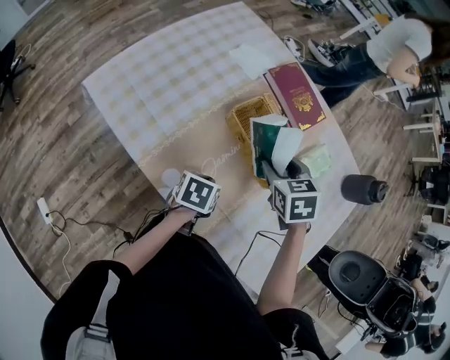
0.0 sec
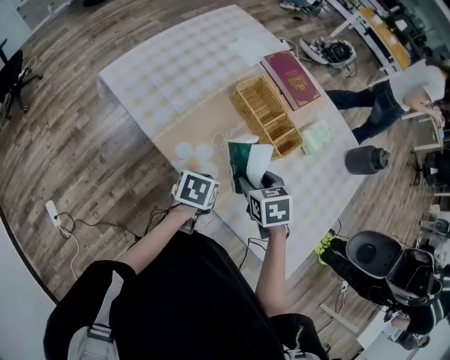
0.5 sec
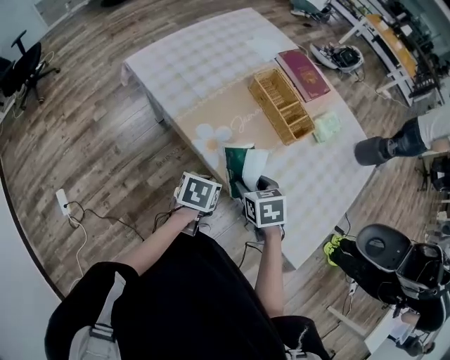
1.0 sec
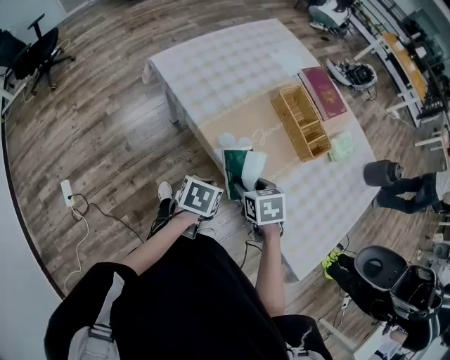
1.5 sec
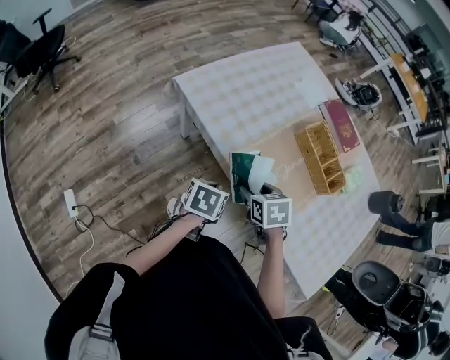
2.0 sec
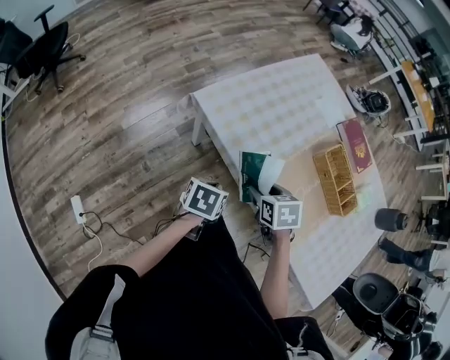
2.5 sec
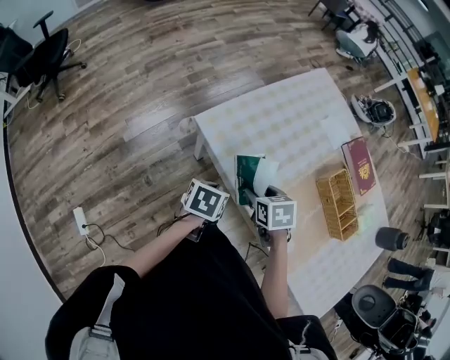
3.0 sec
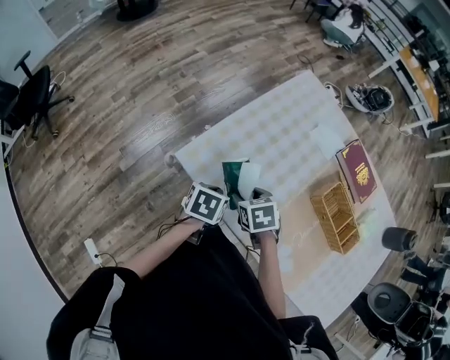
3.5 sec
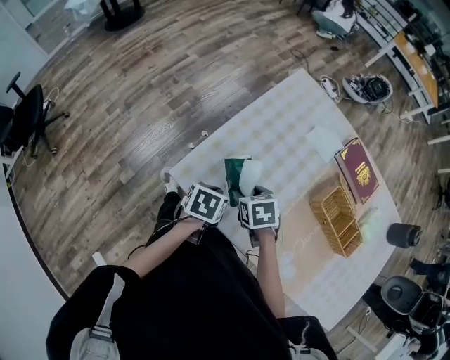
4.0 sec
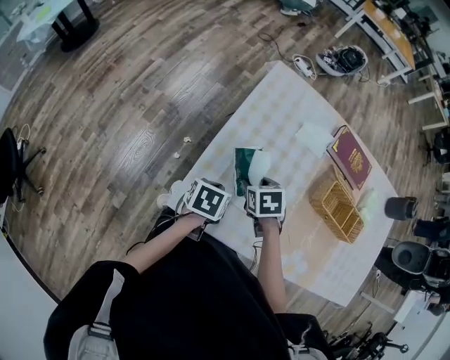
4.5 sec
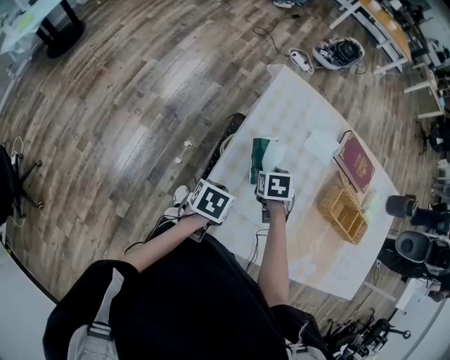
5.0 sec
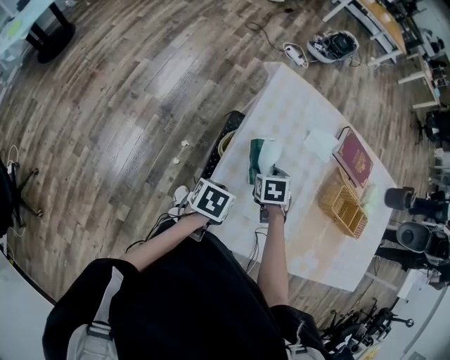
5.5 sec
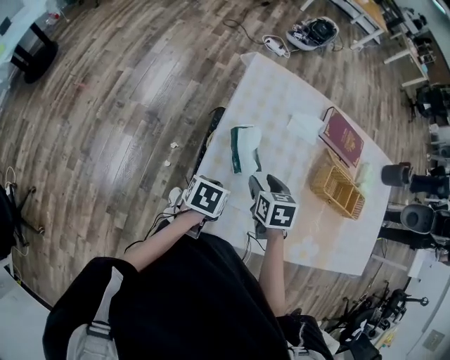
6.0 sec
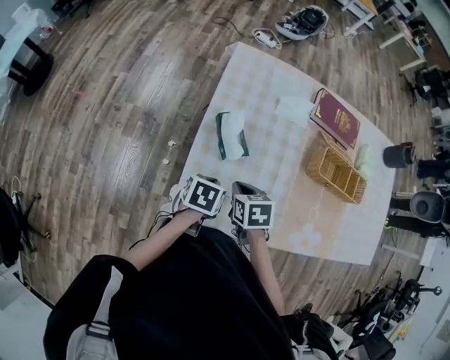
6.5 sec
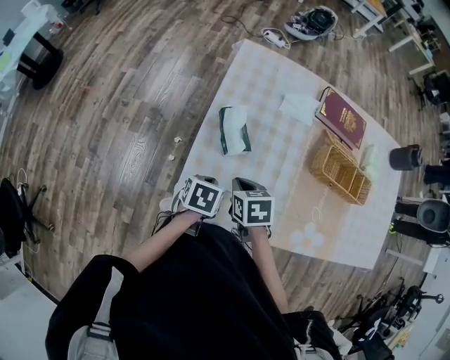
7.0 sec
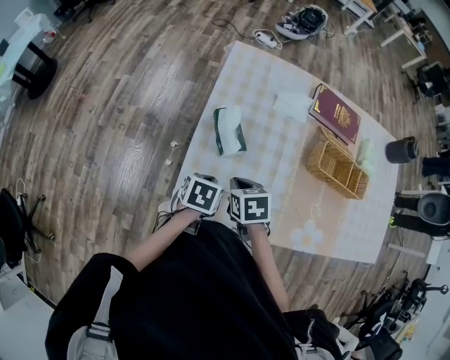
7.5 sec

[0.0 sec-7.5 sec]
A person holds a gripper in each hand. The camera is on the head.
0.0 sec to 2.0 sec: The two grippers go approximately 30 cm to the left and backward.
2.0 sec to 4.0 sec: The grippers both shift forward and to the left by some 35 cm.
4.0 sec to 5.5 sec: The right gripper changes place by approximately 20 cm, and swivels roughly 30 degrees, while the left gripper shifts by approximately 15 cm, and swivels some 20 degrees.
5.5 sec to 7.5 sec: The right gripper is displaced backward by approximately 15 cm, and closes; the left gripper shifts some 10 cm to the right.

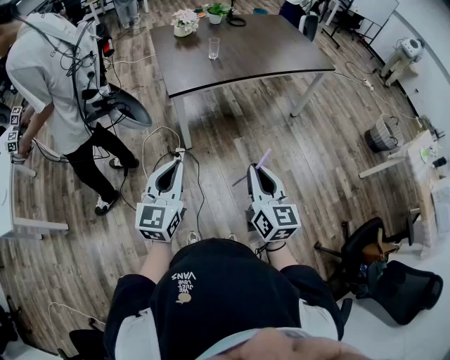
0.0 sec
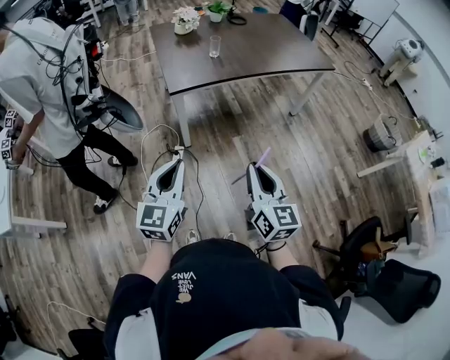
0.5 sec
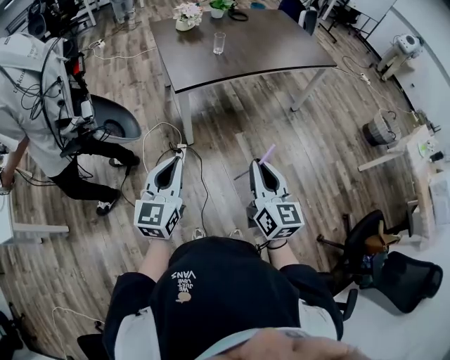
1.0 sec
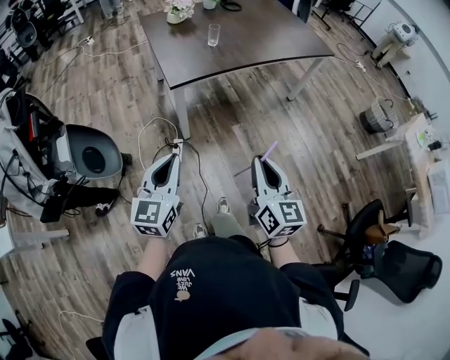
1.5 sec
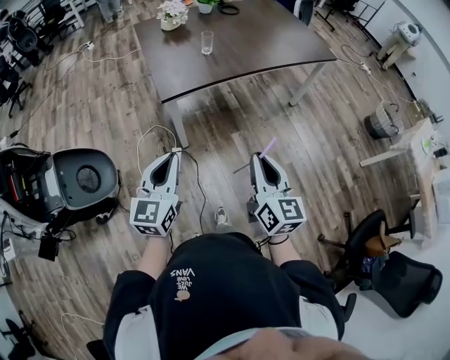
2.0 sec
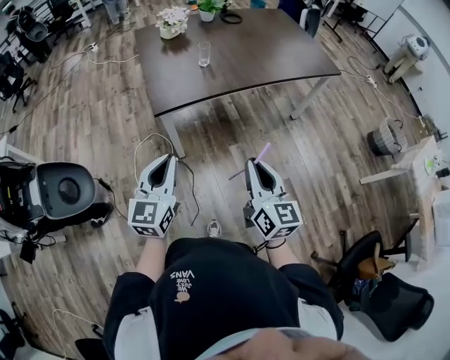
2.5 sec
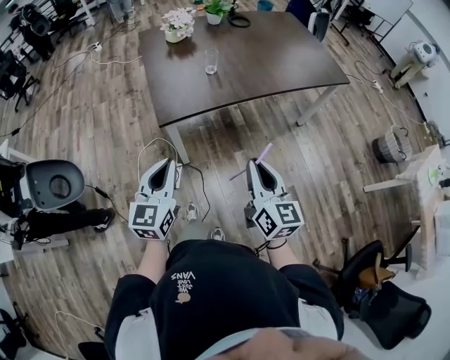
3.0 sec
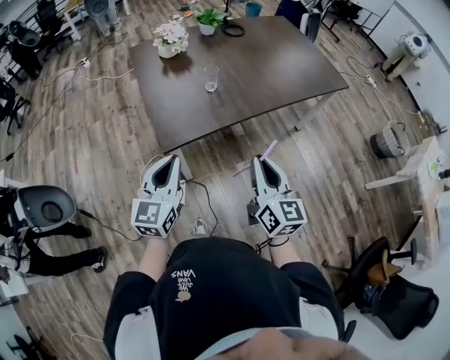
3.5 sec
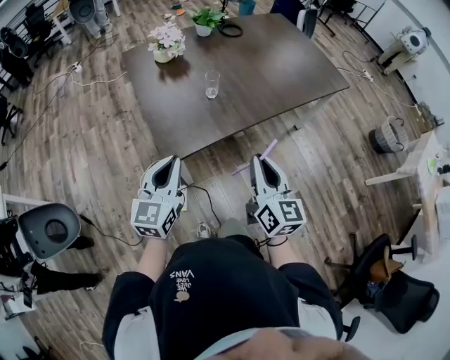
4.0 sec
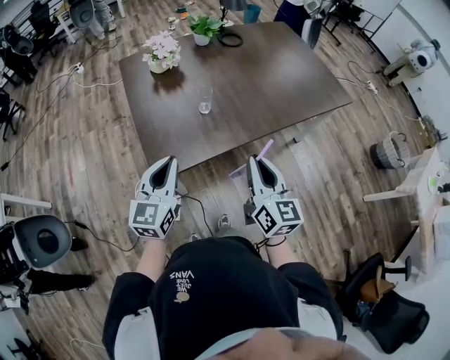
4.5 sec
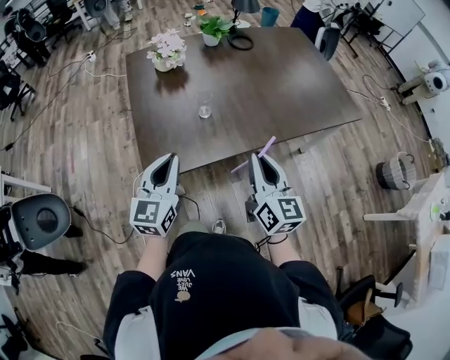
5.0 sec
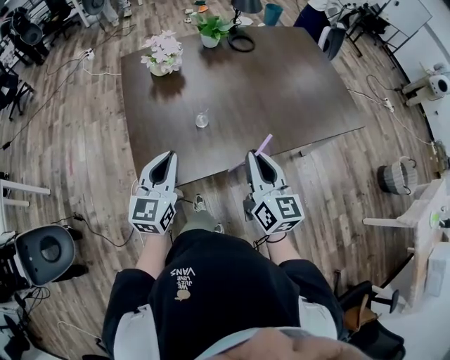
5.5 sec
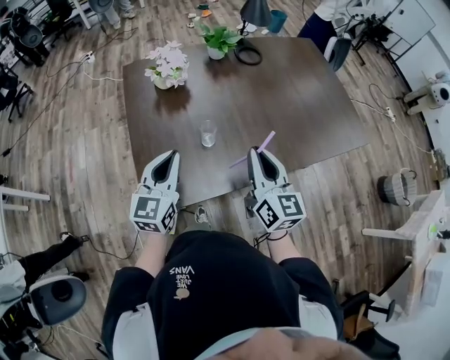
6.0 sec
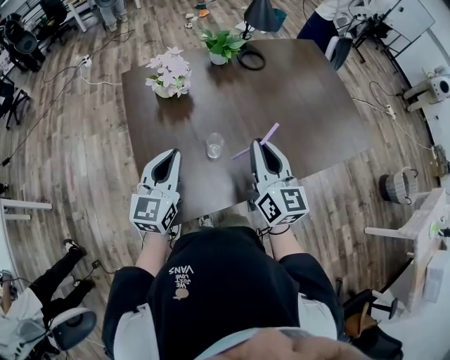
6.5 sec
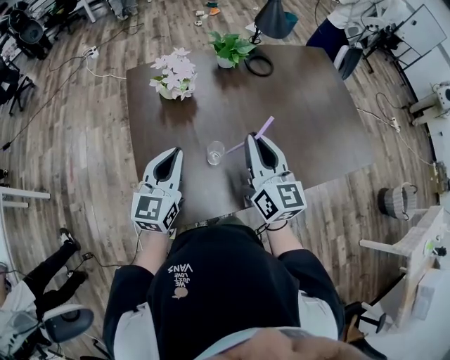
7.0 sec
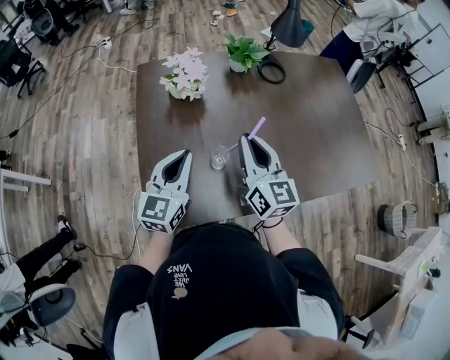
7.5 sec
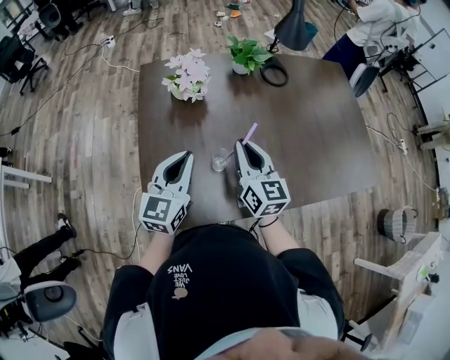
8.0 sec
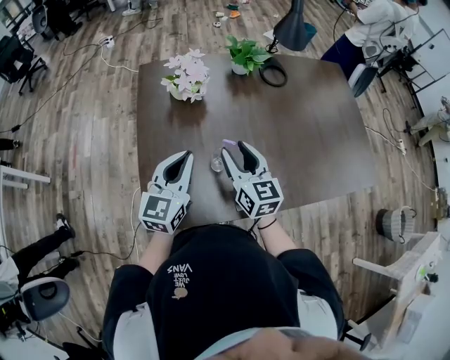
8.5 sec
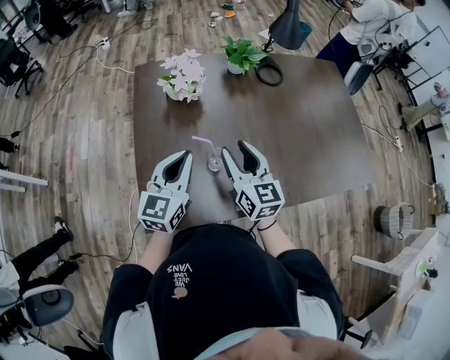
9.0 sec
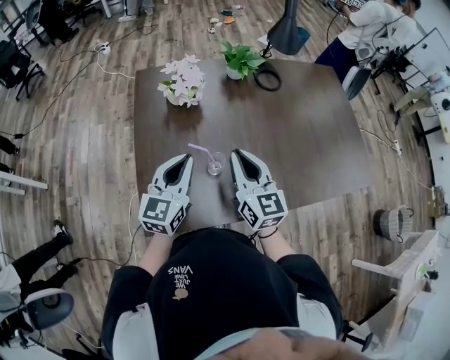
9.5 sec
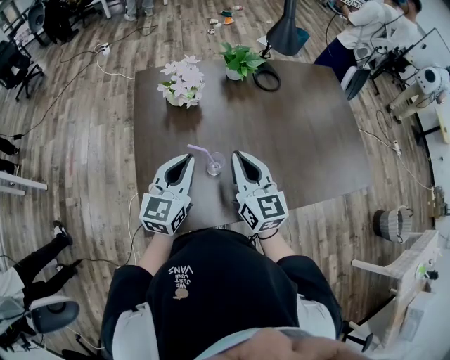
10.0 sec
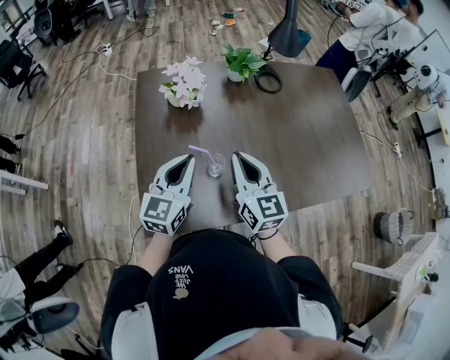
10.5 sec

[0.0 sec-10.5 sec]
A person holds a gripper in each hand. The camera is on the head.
0.0 sec to 2.0 sec: Both grippers move forward, some 10 cm.
2.0 sec to 4.0 sec: Both grippers move forward, roughly 30 cm.
4.0 sec to 6.5 sec: The grippers both shift forward by approximately 35 cm.
6.5 sec to 8.5 sec: The right gripper travels forward, downward and to the left by roughly 15 cm, changes its angle by approximately 20 degrees, and opens up.
8.5 sec to 10.5 sec: The right gripper moves about 5 cm, and closes up.

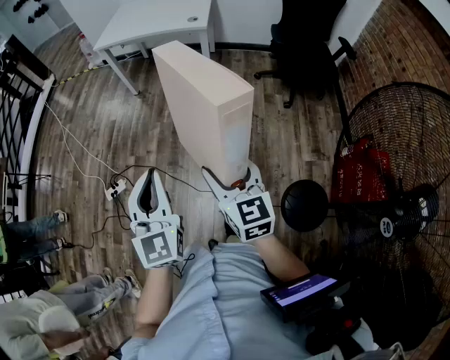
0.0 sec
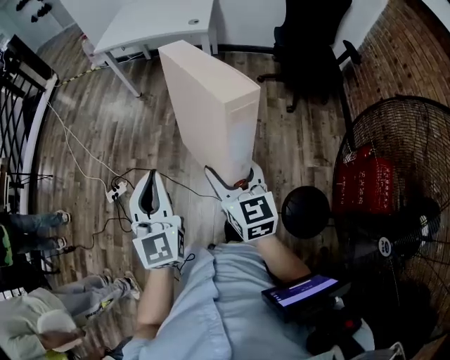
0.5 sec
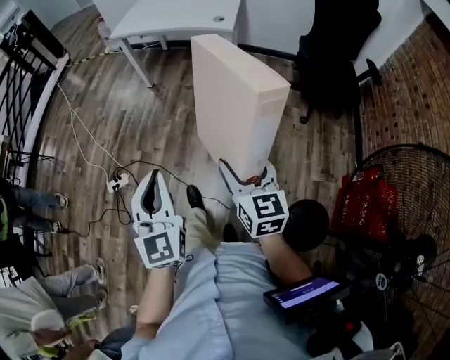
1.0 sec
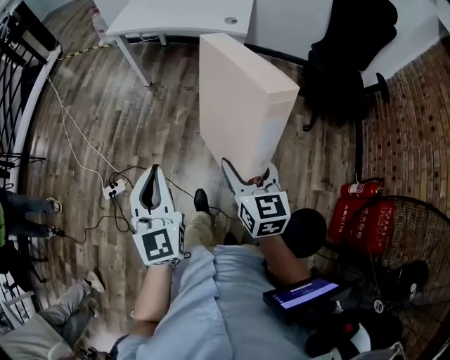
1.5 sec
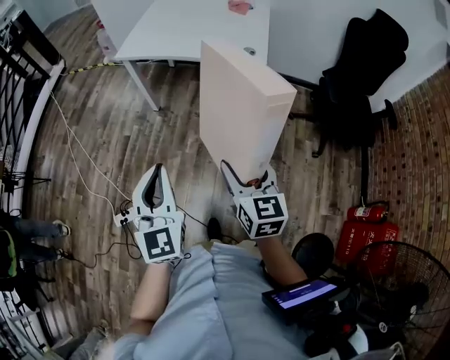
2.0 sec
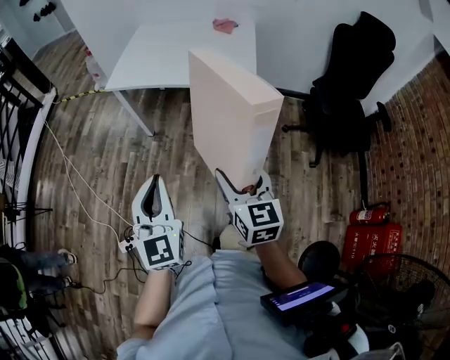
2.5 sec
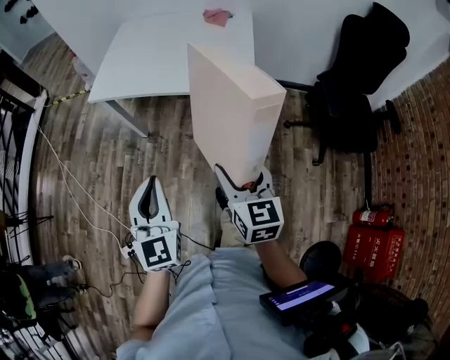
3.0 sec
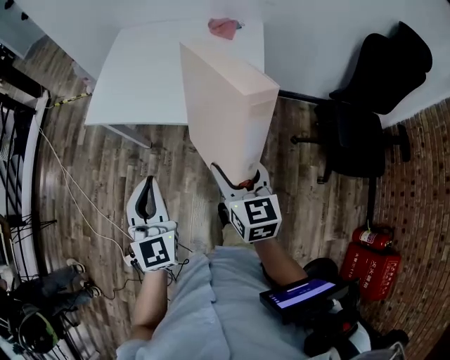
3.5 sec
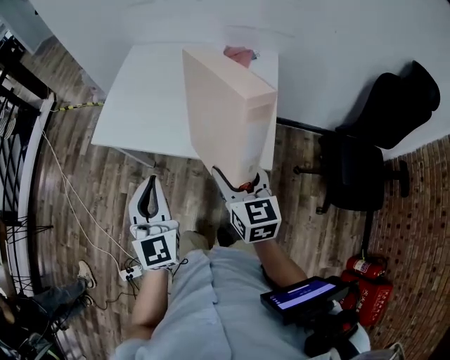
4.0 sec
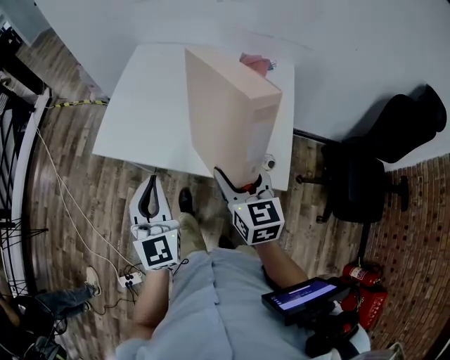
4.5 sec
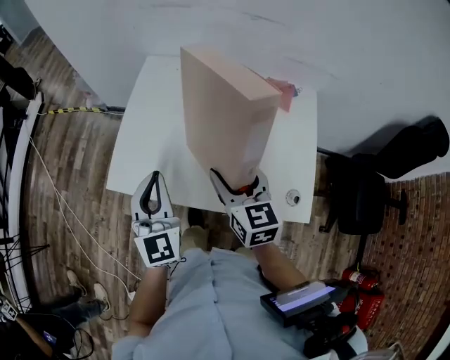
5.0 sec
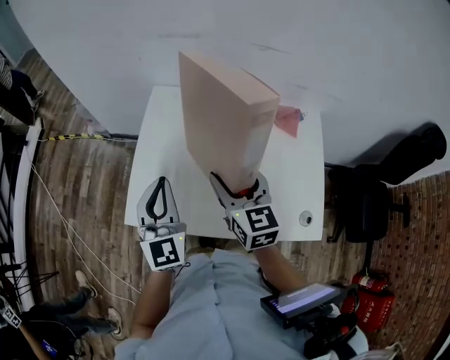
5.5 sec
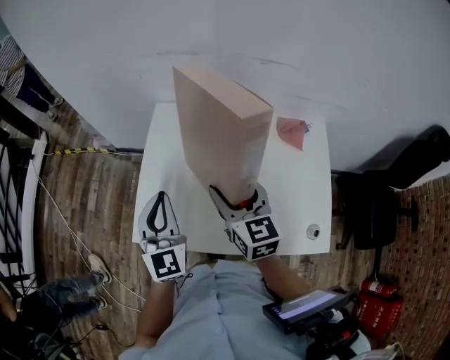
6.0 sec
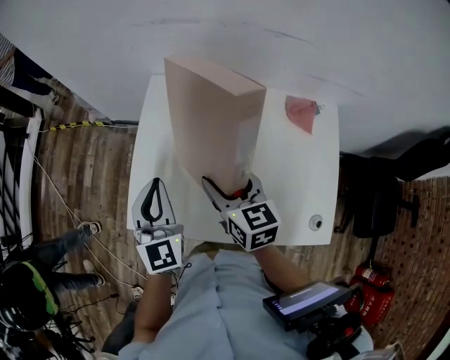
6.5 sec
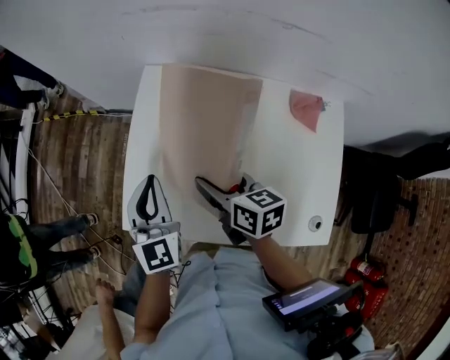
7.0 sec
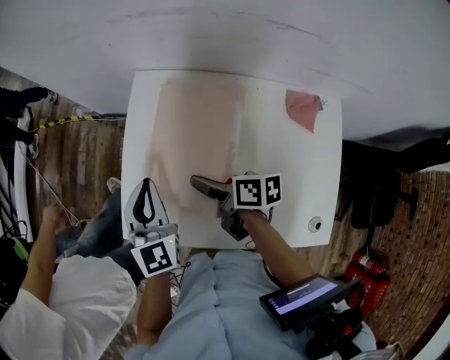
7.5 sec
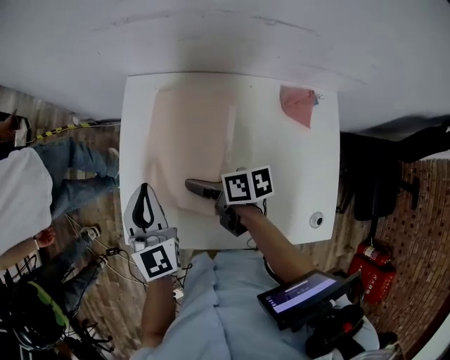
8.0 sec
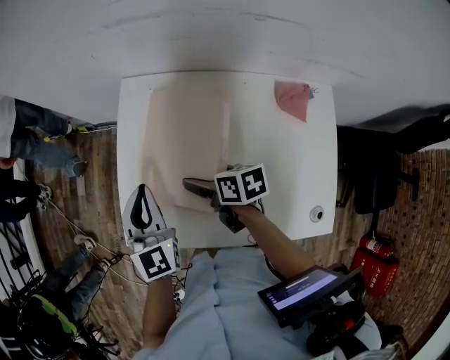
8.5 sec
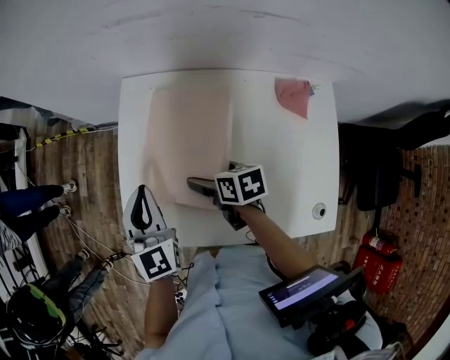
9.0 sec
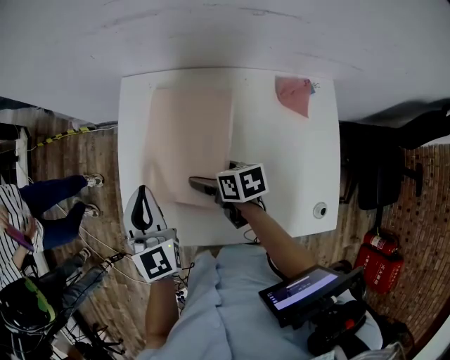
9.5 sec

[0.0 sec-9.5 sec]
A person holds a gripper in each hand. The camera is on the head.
0.0 sec to 2.0 sec: The grippers both shift forward by about 40 cm.
2.0 sec to 4.0 sec: The two grippers travel together, forward, about 50 cm.
4.0 sec to 5.5 sec: Both grippers move forward and to the left, roughly 40 cm.
5.5 sec to 7.5 sec: The left gripper shifts some 10 cm forward and downward. The right gripper is displaced downward and forward by roughly 15 cm, and swivels about 60 degrees.
7.5 sec to 9.5 sec: The right gripper is displaced downward by roughly 5 cm, rotates roughly 20 degrees, and opens its fingers.
